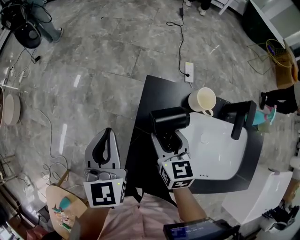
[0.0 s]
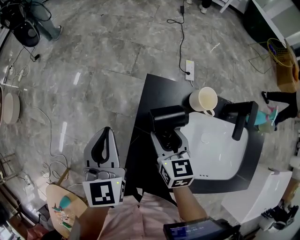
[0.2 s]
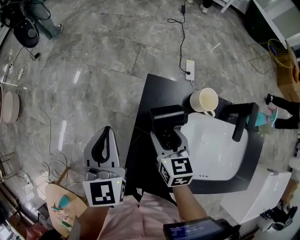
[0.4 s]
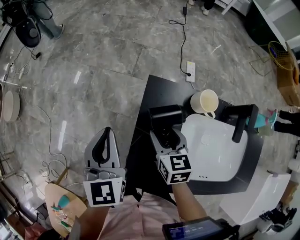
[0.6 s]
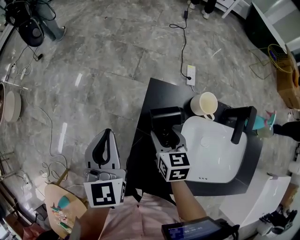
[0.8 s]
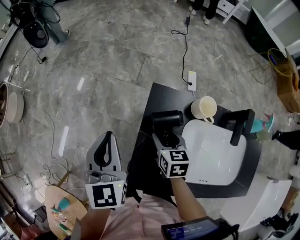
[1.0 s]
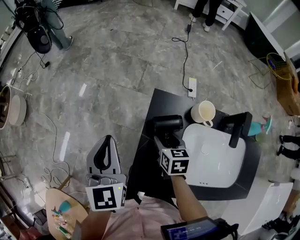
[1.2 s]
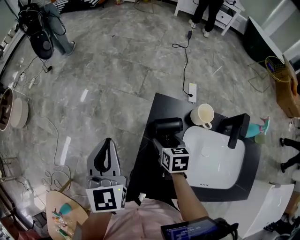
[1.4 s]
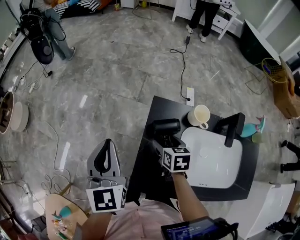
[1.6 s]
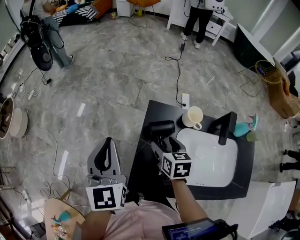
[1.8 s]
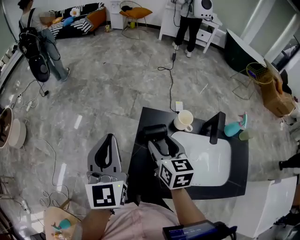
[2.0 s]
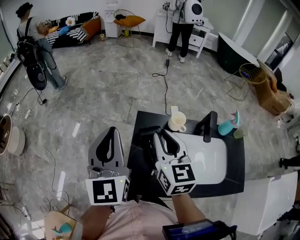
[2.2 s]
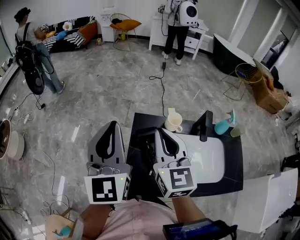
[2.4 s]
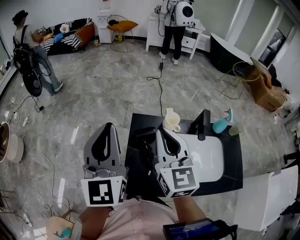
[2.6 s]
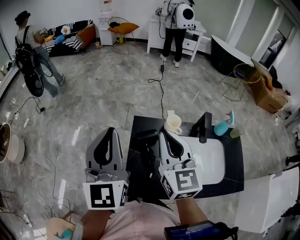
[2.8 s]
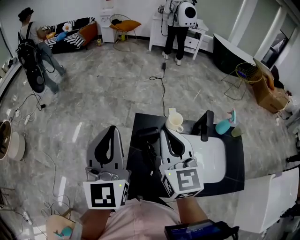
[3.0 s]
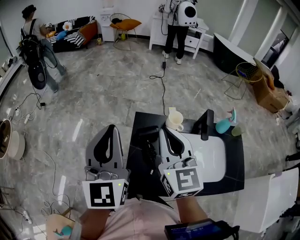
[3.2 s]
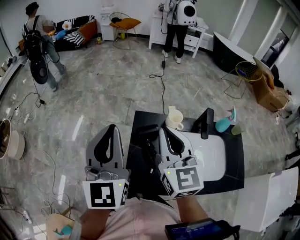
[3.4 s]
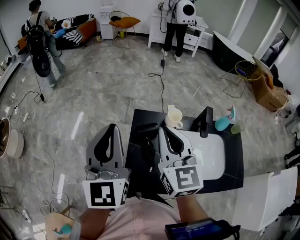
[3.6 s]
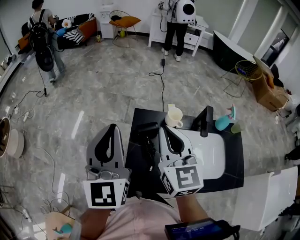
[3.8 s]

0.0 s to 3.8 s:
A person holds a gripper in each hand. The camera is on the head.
0.0 to 1.2 s: The right gripper goes about 5 cm downward.
1.2 to 2.6 s: The right gripper goes about 35 cm upward, tips its fingers upward by roughly 40 degrees, and closes up, while the left gripper is displaced upward by some 20 cm, and swivels some 30 degrees.
2.6 to 3.8 s: There are only small adjustments of the grippers.

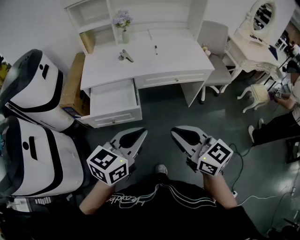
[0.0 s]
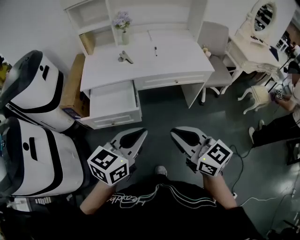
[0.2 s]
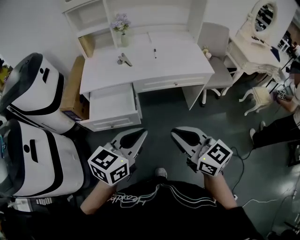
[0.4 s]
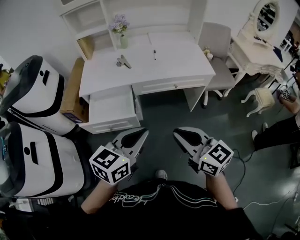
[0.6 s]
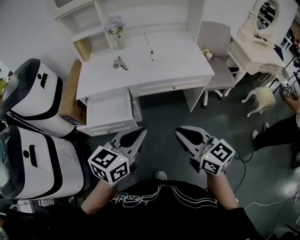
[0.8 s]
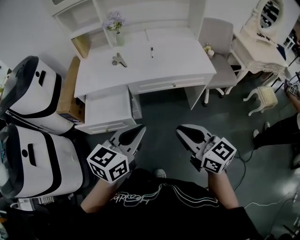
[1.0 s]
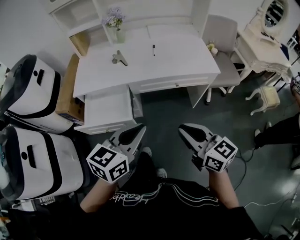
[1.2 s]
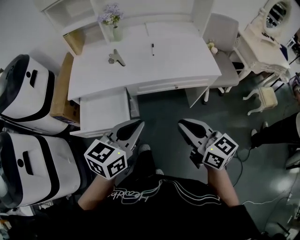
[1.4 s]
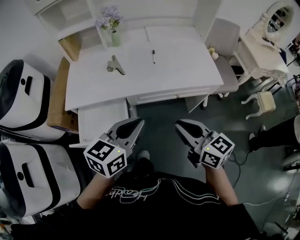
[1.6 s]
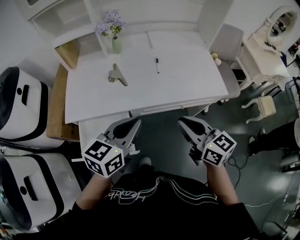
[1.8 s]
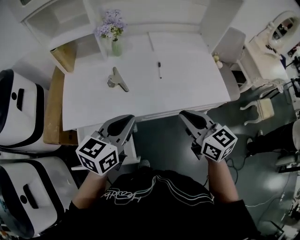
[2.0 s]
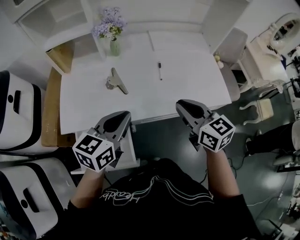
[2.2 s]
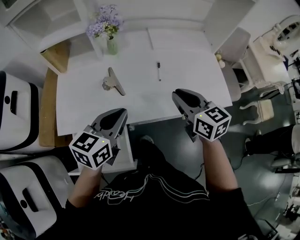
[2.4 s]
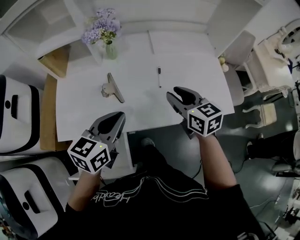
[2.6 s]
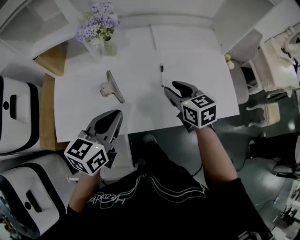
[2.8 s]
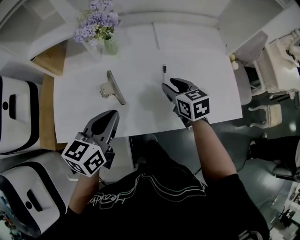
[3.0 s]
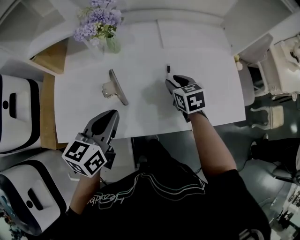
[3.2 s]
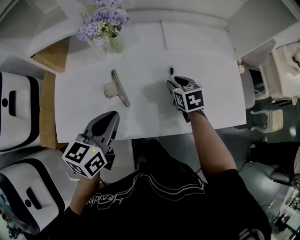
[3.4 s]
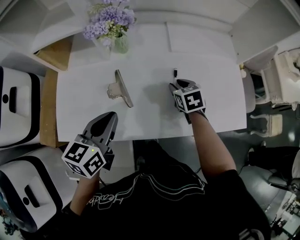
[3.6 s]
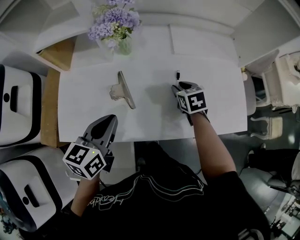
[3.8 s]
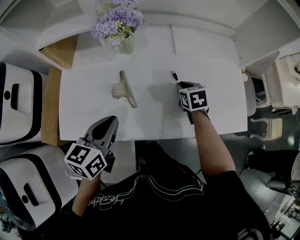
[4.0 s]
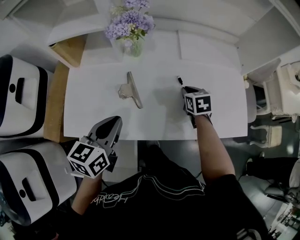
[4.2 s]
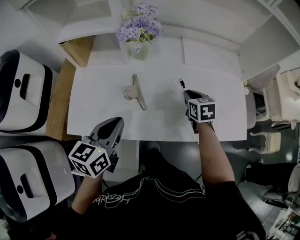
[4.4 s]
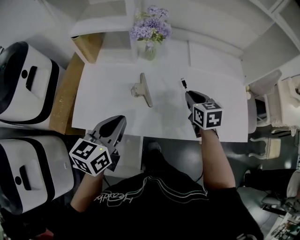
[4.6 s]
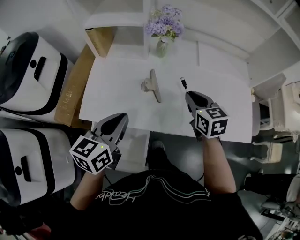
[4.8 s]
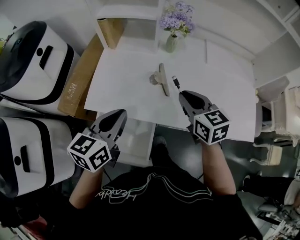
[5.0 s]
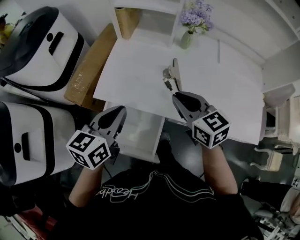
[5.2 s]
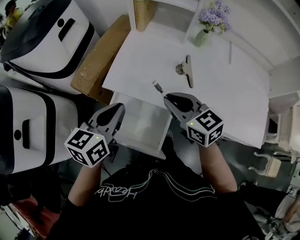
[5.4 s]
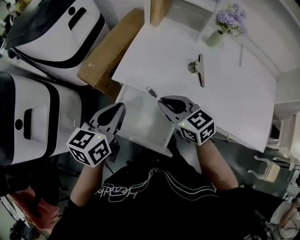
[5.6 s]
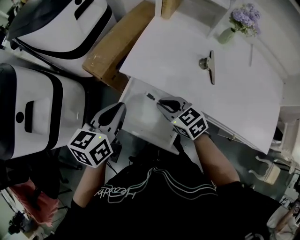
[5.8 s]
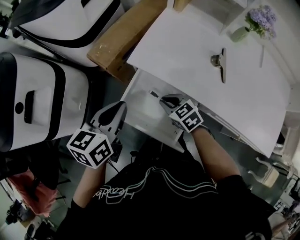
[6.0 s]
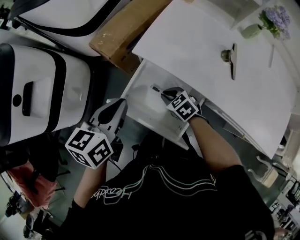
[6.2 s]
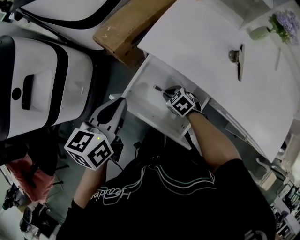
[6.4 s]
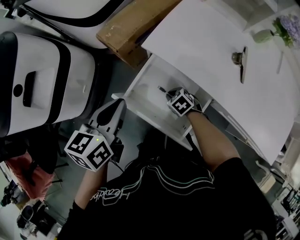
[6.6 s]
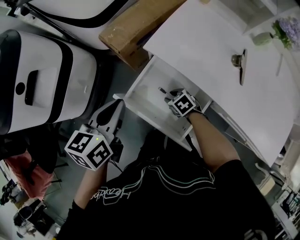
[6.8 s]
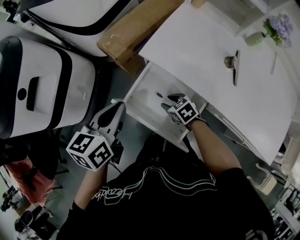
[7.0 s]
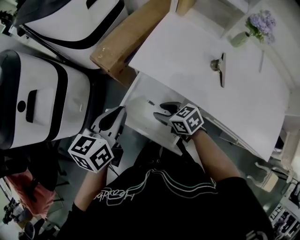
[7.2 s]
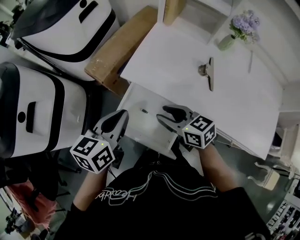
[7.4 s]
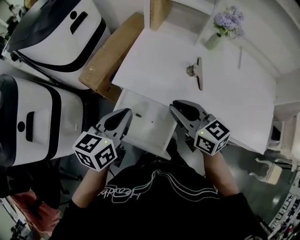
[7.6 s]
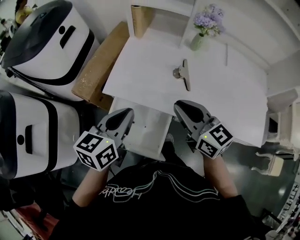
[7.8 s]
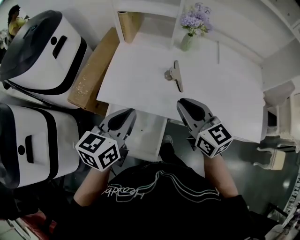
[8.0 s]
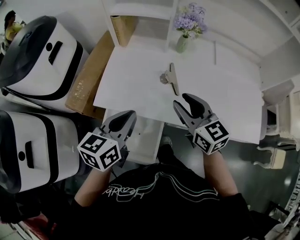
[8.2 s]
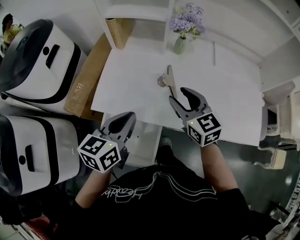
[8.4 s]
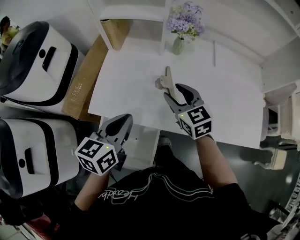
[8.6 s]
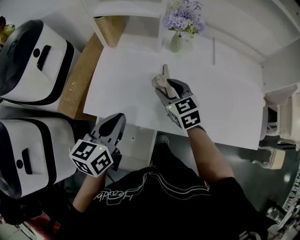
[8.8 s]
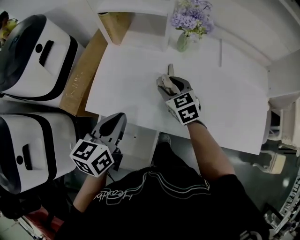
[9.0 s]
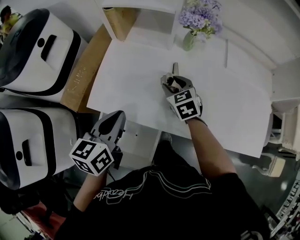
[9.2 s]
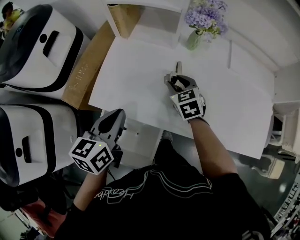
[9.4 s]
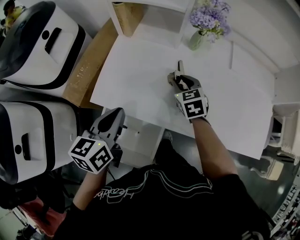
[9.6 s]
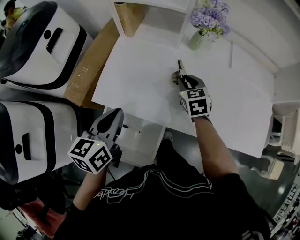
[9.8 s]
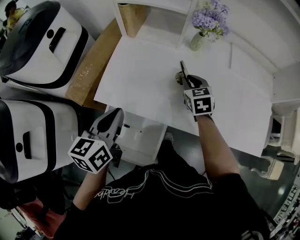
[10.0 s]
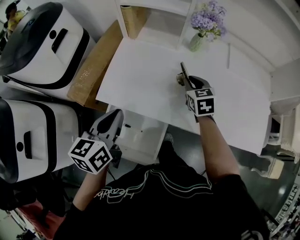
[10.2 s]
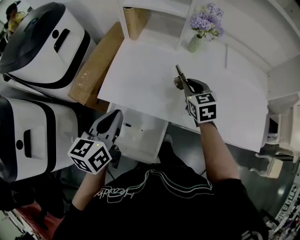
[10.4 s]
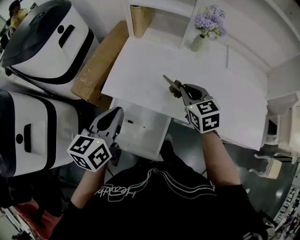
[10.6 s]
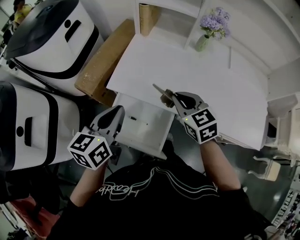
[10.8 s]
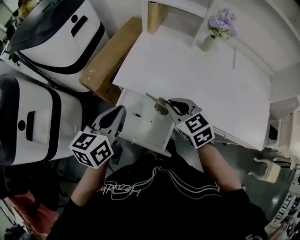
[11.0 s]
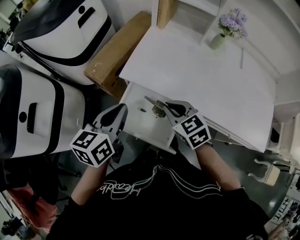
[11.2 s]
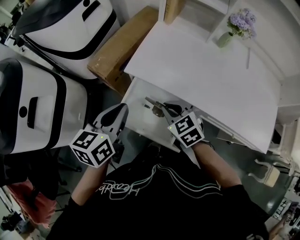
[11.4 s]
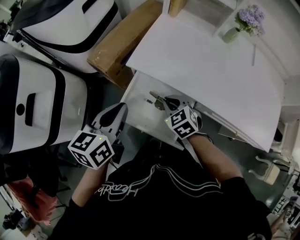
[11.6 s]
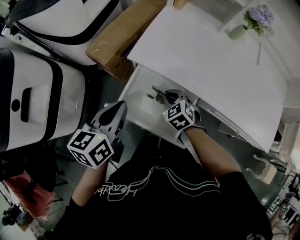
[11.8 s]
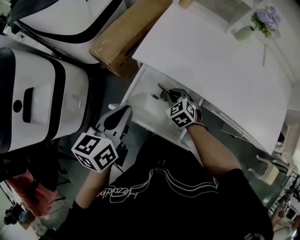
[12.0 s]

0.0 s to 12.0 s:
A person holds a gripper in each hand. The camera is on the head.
0.0 to 1.6 s: The grippers both shift forward by approximately 25 cm.
1.6 to 3.0 s: The grippers both shift forward by about 35 cm. The right gripper changes its angle by about 30 degrees, and opens its fingers.
3.0 to 4.4 s: The left gripper is displaced to the left by about 10 cm.
4.4 to 6.0 s: The right gripper ends up about 50 cm from where it was, and swivels approximately 60 degrees. The left gripper shifts by approximately 35 cm, and rotates about 30 degrees.
6.0 to 7.6 s: The left gripper moves approximately 10 cm, while the right gripper goes some 20 cm upward, rotates about 40 degrees, and opens and closes again.
7.6 to 9.0 s: The right gripper goes approximately 25 cm forward, to the right and downward, rotates approximately 30 degrees, and opens its fingers, while the left gripper heads to the right and forward, covering roughly 15 cm.
9.0 to 10.4 s: The right gripper changes place by roughly 5 cm, and closes. Meanwhile the left gripper travels to the left and backward by roughly 10 cm.
10.4 to 12.0 s: The right gripper shifts some 35 cm to the left, downward and backward, and swivels some 40 degrees, while the left gripper is displaced to the left, downward and backward by about 20 cm.

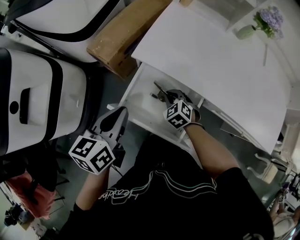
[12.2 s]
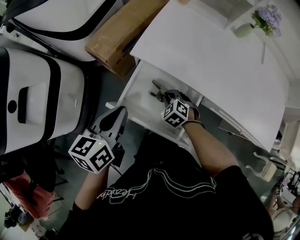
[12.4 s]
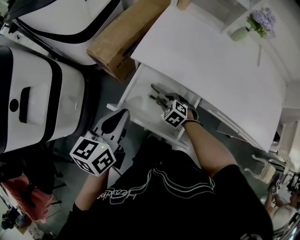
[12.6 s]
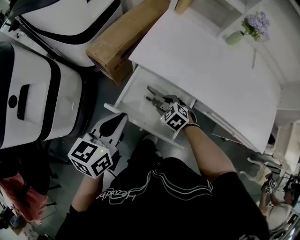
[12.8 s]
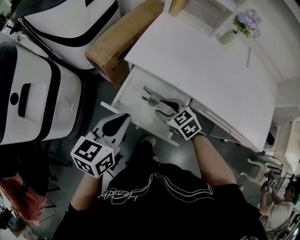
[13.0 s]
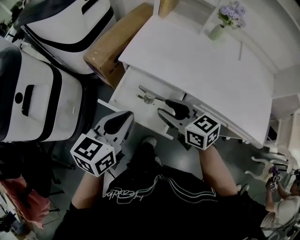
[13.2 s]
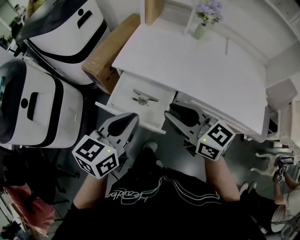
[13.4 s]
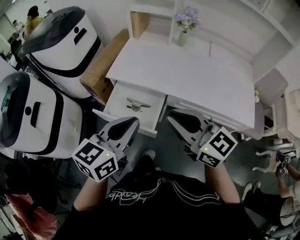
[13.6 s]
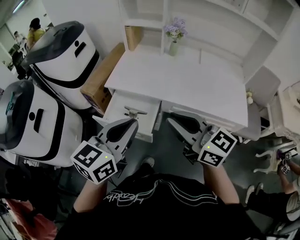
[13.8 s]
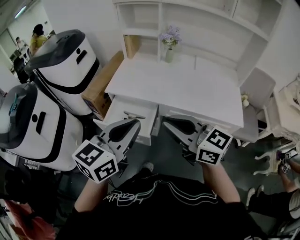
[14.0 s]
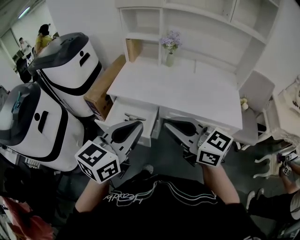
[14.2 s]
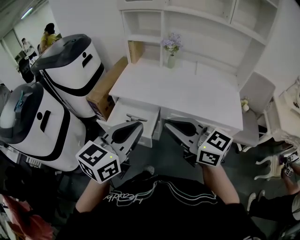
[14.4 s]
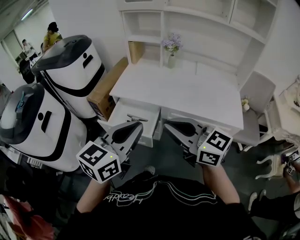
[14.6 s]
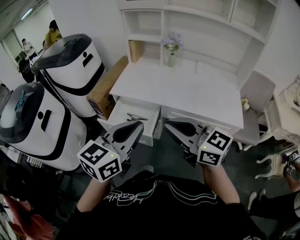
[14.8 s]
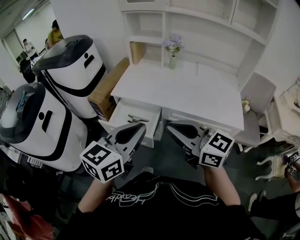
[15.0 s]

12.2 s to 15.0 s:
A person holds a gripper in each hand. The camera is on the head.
12.2 to 13.6 s: The left gripper heads backward, upward and to the right, covering approximately 35 cm, and changes its angle by some 30 degrees, while the right gripper moves upward and backward, roughly 50 cm, tilts its fingers roughly 50 degrees upward, and opens and closes again.
13.6 to 15.0 s: The two grippers go roughly 15 cm backward and upward.

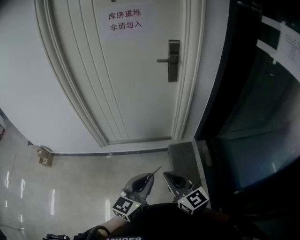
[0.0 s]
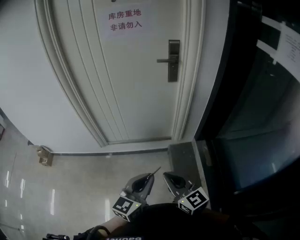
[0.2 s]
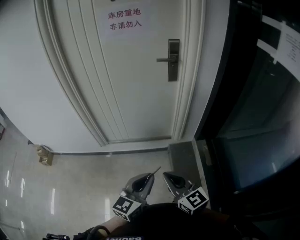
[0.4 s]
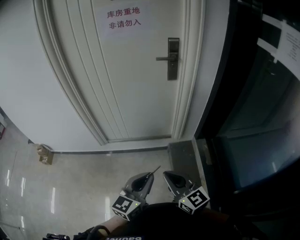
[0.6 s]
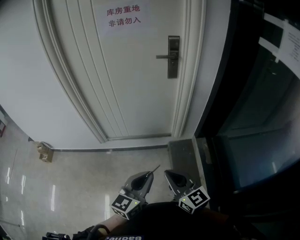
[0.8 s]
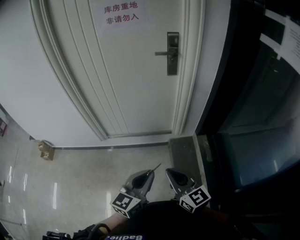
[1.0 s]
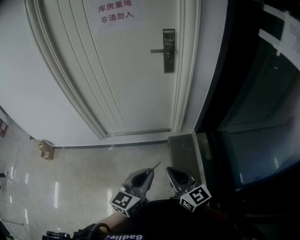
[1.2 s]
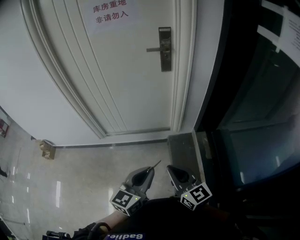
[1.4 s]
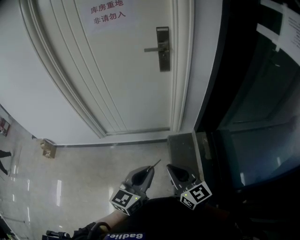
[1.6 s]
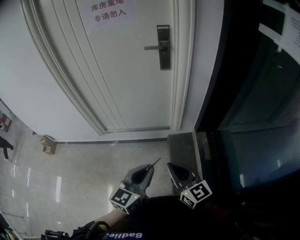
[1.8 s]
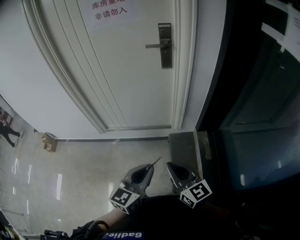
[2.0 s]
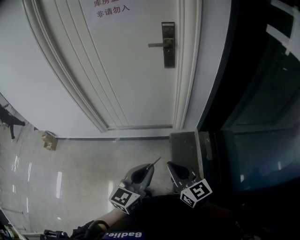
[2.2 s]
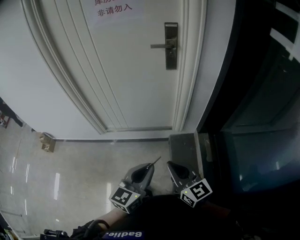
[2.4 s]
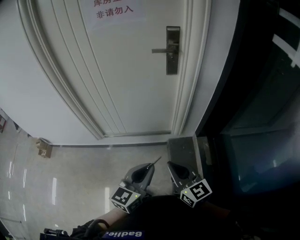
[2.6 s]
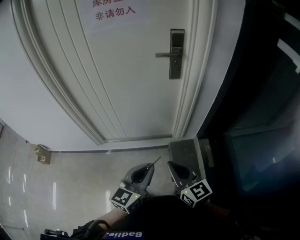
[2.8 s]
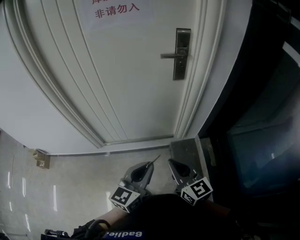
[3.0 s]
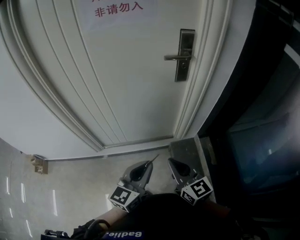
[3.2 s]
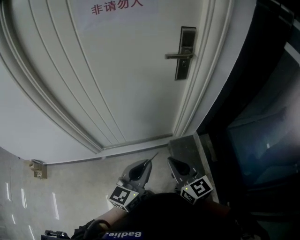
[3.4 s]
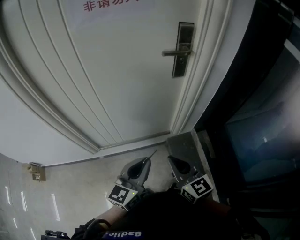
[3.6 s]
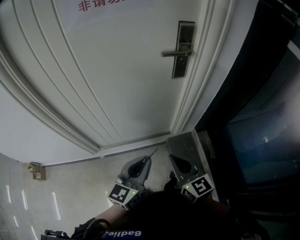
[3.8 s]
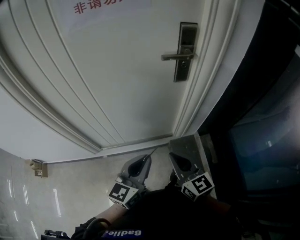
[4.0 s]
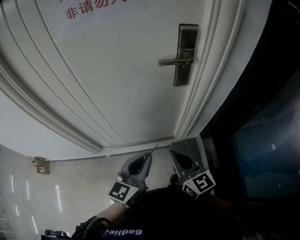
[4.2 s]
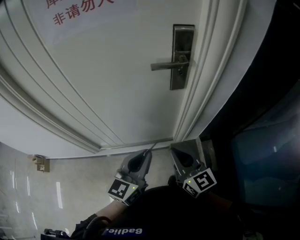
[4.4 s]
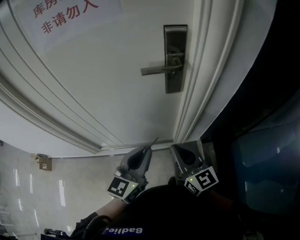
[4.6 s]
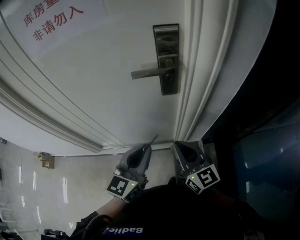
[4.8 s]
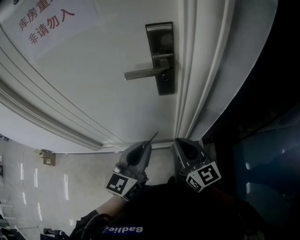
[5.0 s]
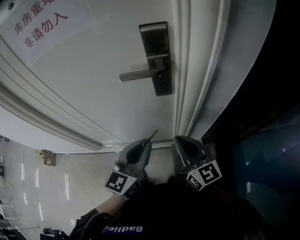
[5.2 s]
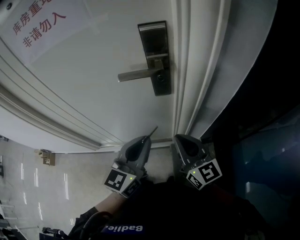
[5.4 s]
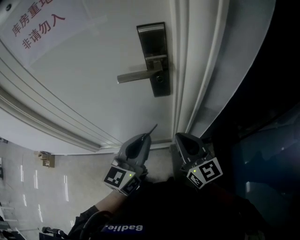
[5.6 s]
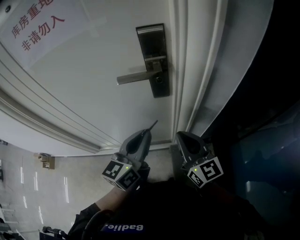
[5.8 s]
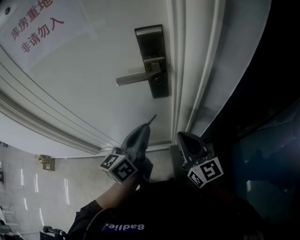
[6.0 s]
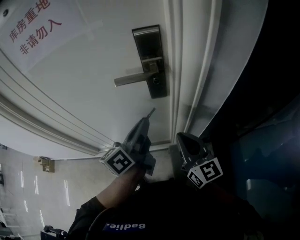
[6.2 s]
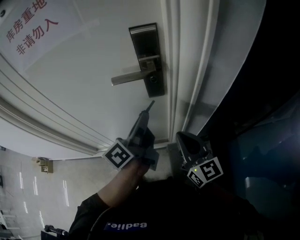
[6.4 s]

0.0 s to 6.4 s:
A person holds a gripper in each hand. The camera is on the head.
0.0 to 1.6 s: The grippers both shift to the right by roughly 10 cm.
1.6 to 3.2 s: The grippers both shift forward and to the left by some 25 cm.
3.2 to 4.8 s: Both grippers move forward and to the right, about 25 cm.
4.8 to 6.4 s: The right gripper moves to the right, about 5 cm. Meanwhile the left gripper is displaced forward by roughly 10 cm, and rotates around the line of its fingers by roughly 50 degrees, counterclockwise from behind.
